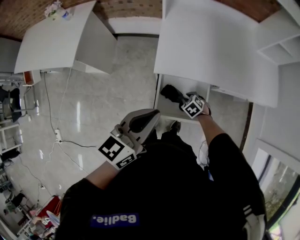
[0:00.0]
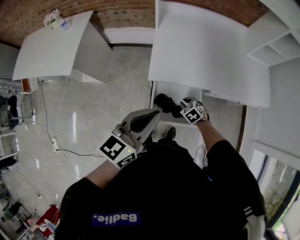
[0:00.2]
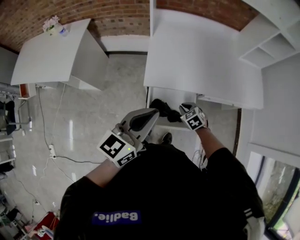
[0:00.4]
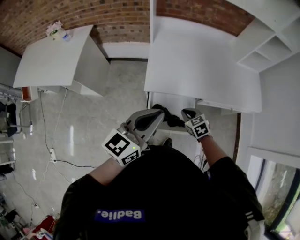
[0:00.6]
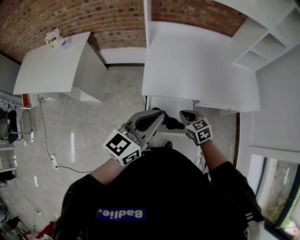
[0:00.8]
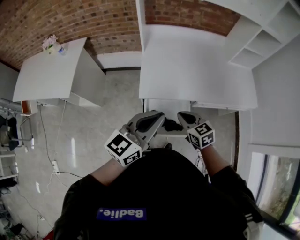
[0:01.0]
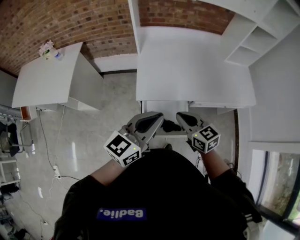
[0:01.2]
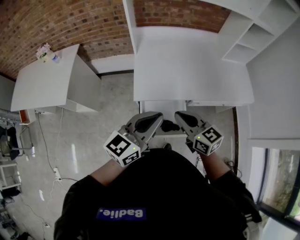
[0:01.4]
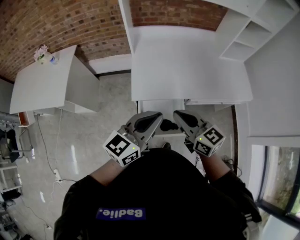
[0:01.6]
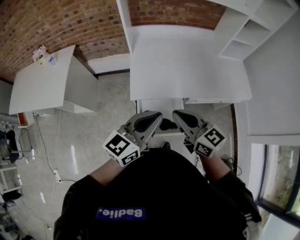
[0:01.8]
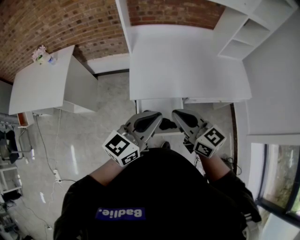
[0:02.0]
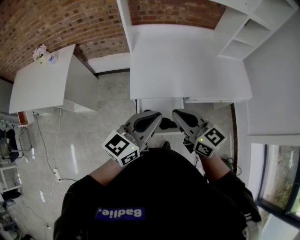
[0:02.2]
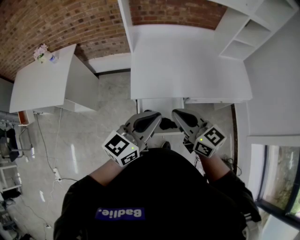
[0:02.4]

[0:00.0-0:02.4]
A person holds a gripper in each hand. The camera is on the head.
0:00.0 to 0:01.2: The right gripper heads upward, covering some 35 cm, and points its fingers some 50 degrees further upward. Meanwhile the left gripper goes some 10 cm to the right and upward.
0:01.2 to 0:02.4: The right gripper goes some 10 cm upward.

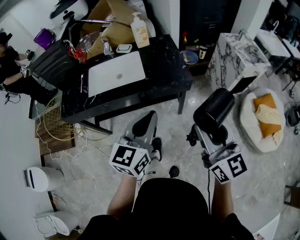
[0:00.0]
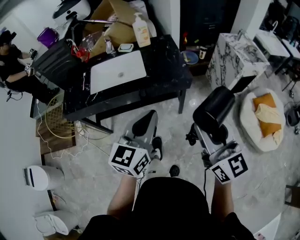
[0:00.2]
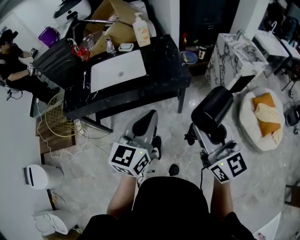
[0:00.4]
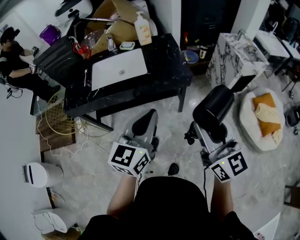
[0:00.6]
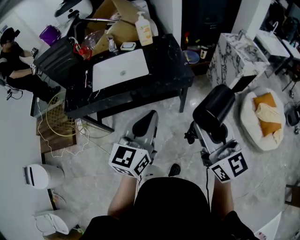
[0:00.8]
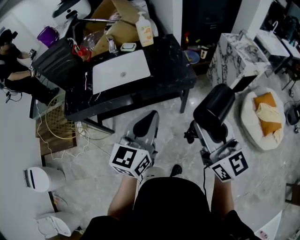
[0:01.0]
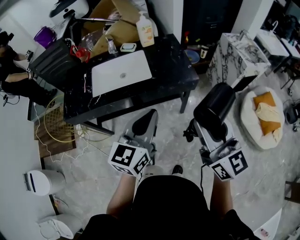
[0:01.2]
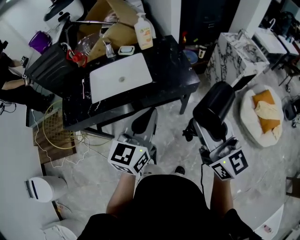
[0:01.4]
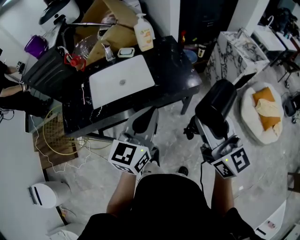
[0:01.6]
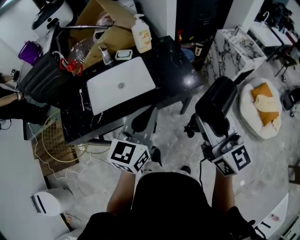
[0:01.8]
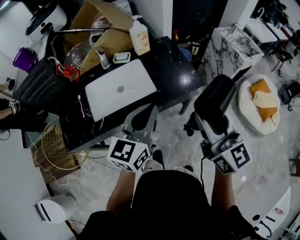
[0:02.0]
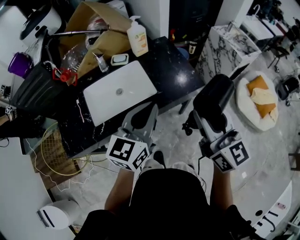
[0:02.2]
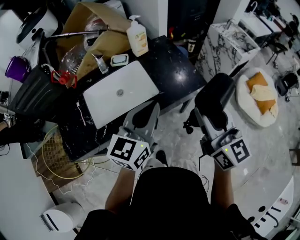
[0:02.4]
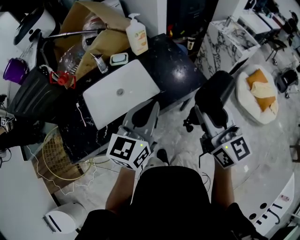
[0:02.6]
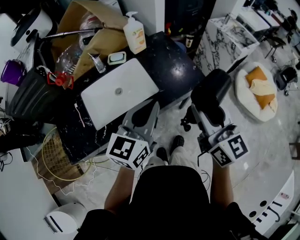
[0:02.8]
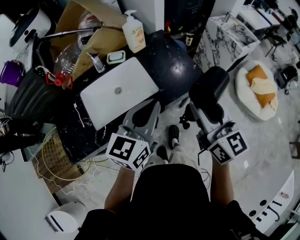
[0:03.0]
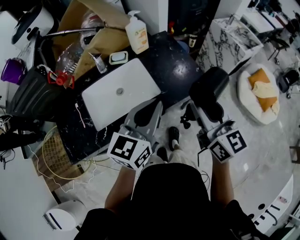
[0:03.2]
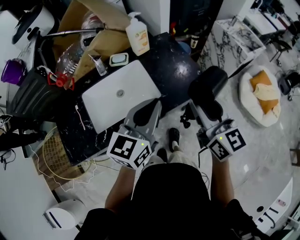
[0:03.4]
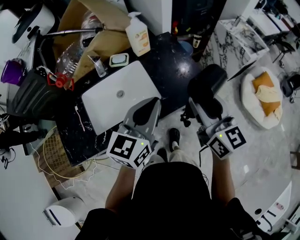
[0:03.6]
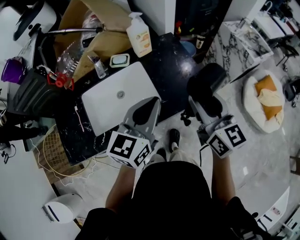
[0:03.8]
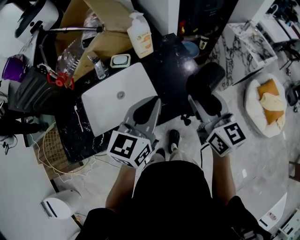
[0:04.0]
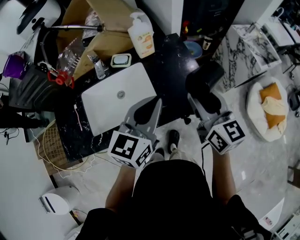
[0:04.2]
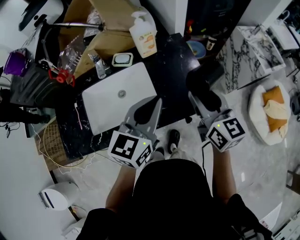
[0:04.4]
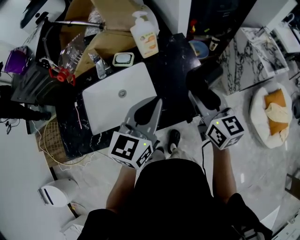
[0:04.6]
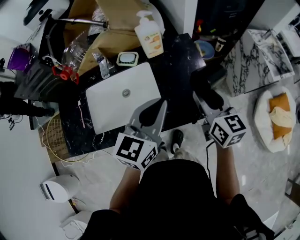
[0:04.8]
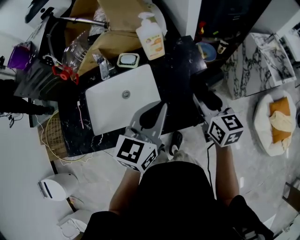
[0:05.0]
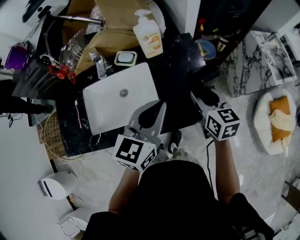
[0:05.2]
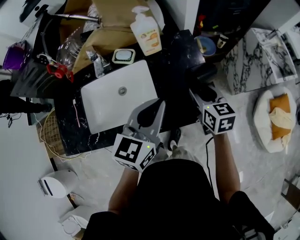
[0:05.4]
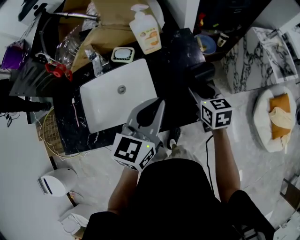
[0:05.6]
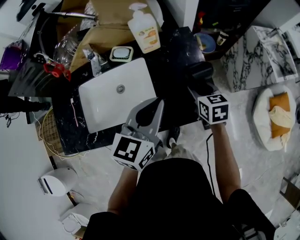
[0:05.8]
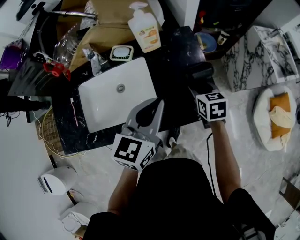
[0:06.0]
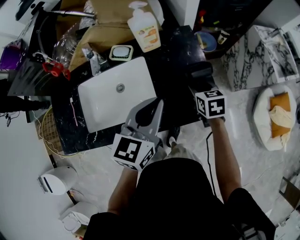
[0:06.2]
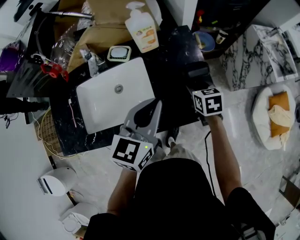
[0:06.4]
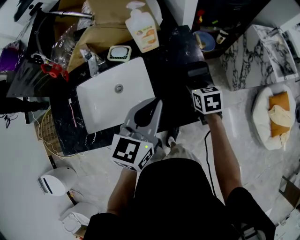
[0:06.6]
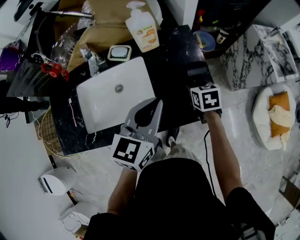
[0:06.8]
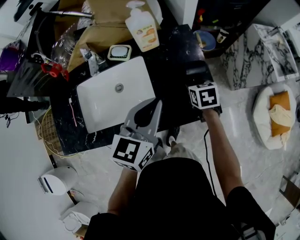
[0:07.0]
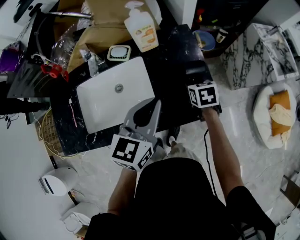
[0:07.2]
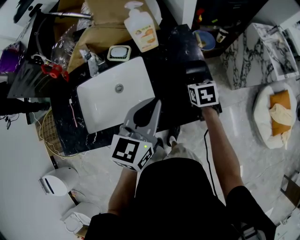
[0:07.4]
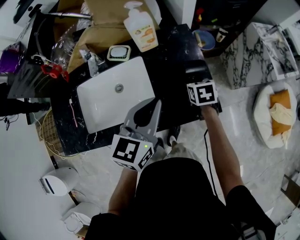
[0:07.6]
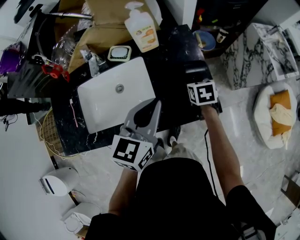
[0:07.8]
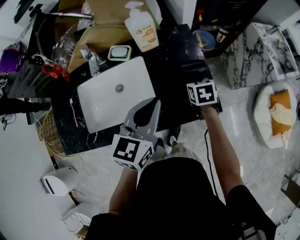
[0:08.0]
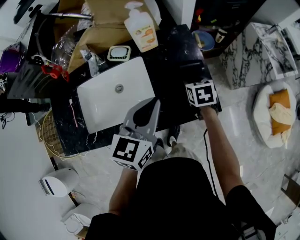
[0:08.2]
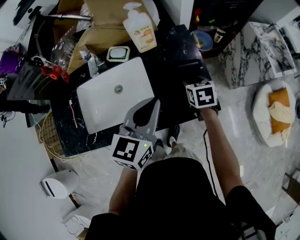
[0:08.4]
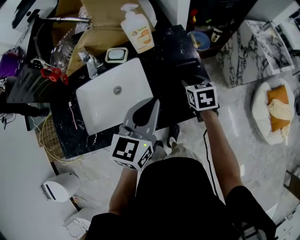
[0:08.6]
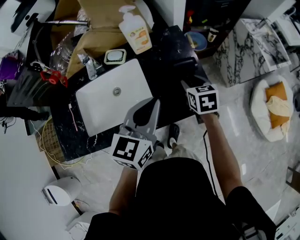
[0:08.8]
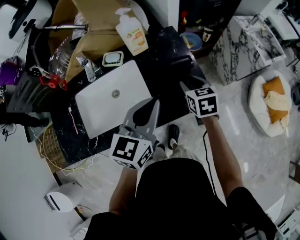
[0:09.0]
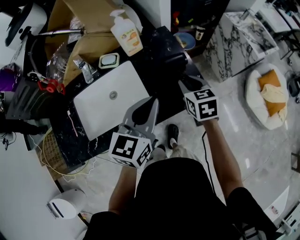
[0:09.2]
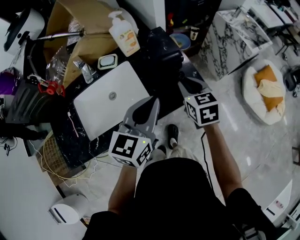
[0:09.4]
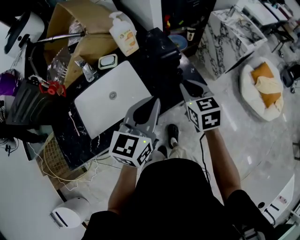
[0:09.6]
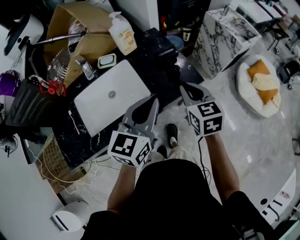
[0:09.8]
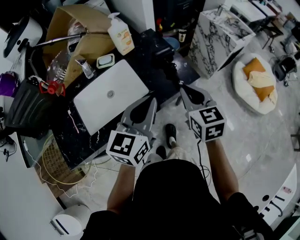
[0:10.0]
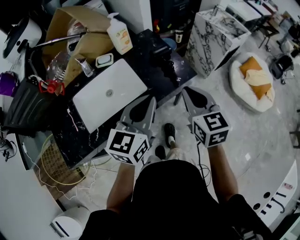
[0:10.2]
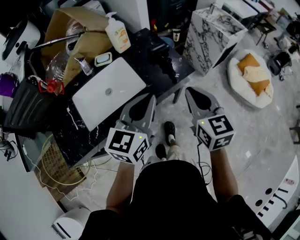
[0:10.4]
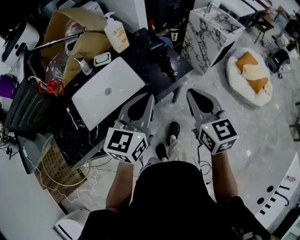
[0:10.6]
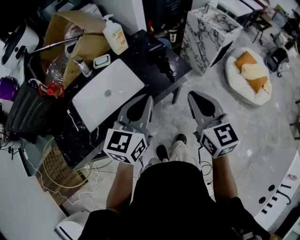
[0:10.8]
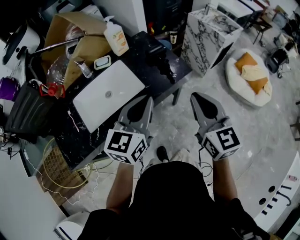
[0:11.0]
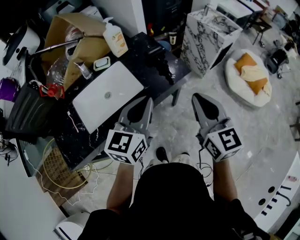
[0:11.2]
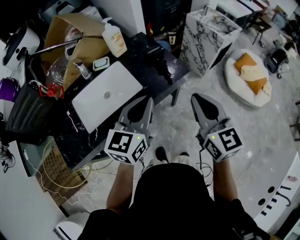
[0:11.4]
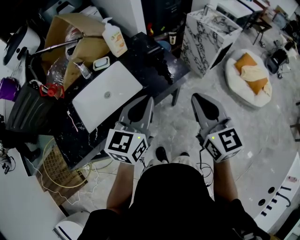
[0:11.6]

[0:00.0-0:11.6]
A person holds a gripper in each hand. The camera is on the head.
0:00.0 to 0:01.4: The grippers both shift to the left by approximately 10 cm.
0:01.4 to 0:02.8: The grippers both shift forward and to the left by roughly 15 cm.
0:02.8 to 0:04.4: The grippers both shift forward by some 20 cm.
0:04.4 to 0:05.8: The right gripper is displaced downward and forward by roughly 20 cm, and angles its fingers downward, by roughly 30 degrees; the left gripper heads forward, covering approximately 5 cm.
0:05.8 to 0:07.2: The right gripper is displaced downward by approximately 5 cm.
0:07.2 to 0:08.8: The right gripper shifts roughly 5 cm upward.
0:08.8 to 0:10.2: The left gripper travels backward by roughly 15 cm. The right gripper heads backward and upward, covering about 30 cm, turns by about 30 degrees, and closes its fingers.
0:10.2 to 0:11.6: The right gripper moves backward and upward, some 10 cm.

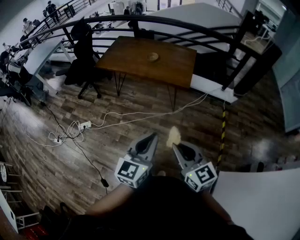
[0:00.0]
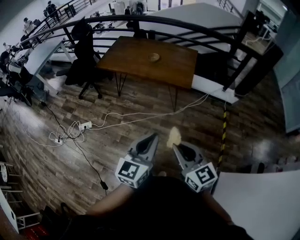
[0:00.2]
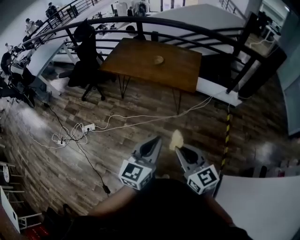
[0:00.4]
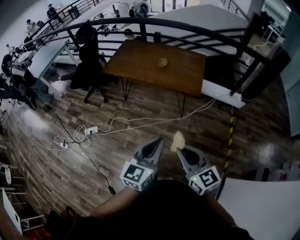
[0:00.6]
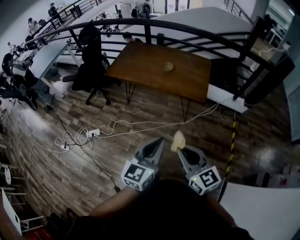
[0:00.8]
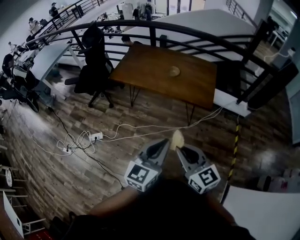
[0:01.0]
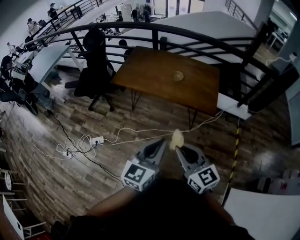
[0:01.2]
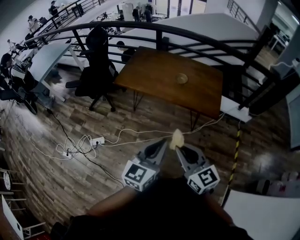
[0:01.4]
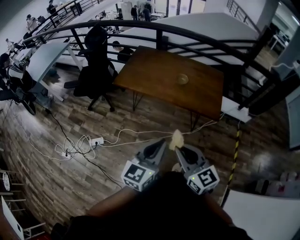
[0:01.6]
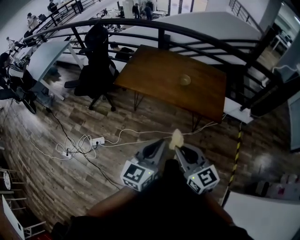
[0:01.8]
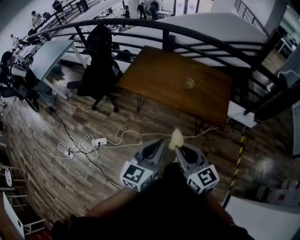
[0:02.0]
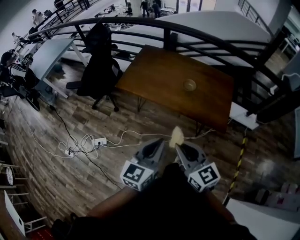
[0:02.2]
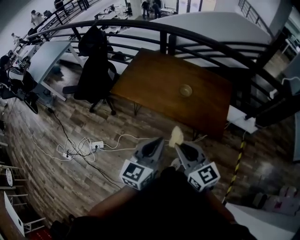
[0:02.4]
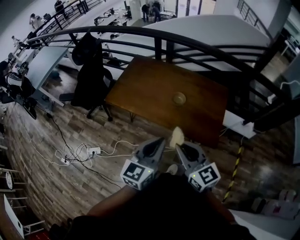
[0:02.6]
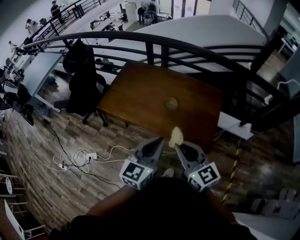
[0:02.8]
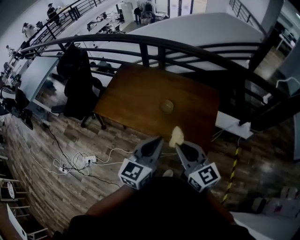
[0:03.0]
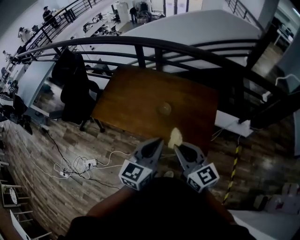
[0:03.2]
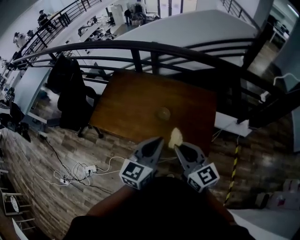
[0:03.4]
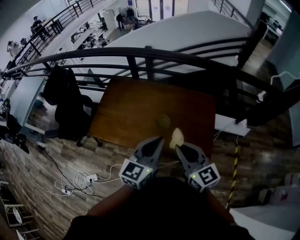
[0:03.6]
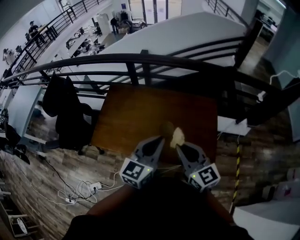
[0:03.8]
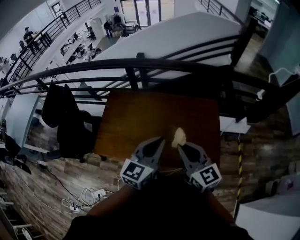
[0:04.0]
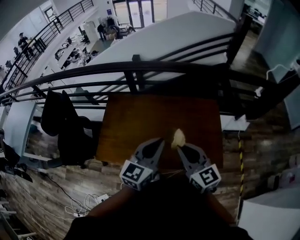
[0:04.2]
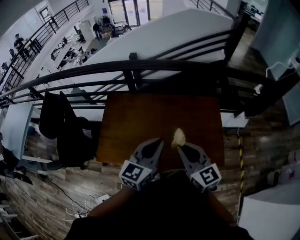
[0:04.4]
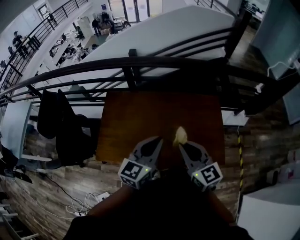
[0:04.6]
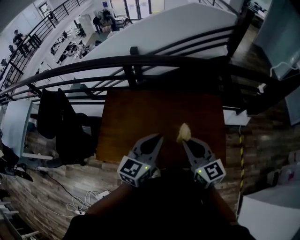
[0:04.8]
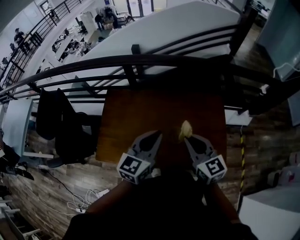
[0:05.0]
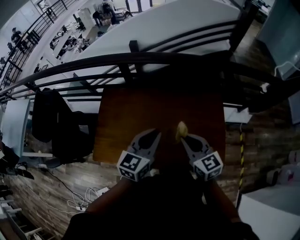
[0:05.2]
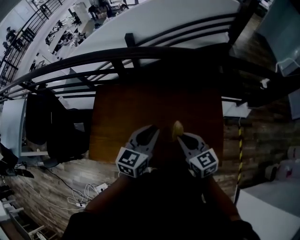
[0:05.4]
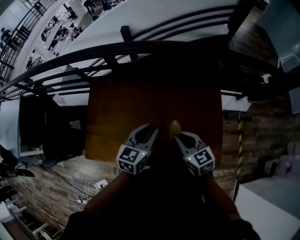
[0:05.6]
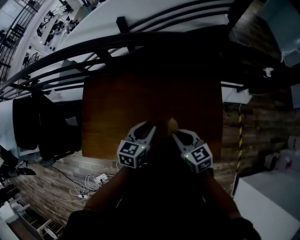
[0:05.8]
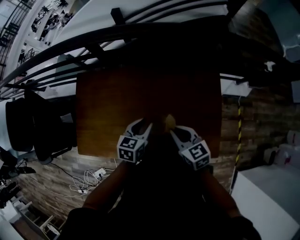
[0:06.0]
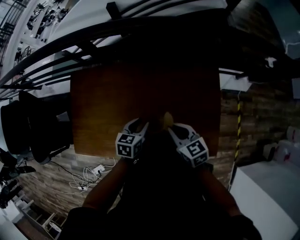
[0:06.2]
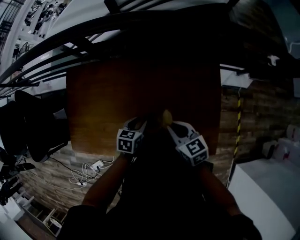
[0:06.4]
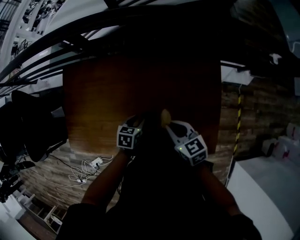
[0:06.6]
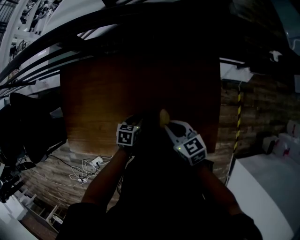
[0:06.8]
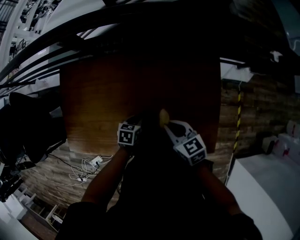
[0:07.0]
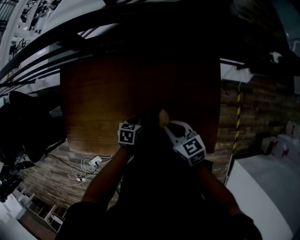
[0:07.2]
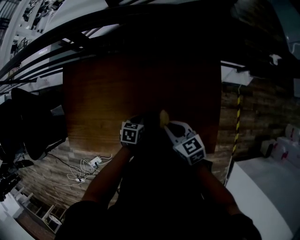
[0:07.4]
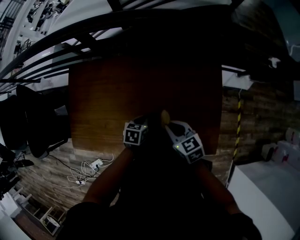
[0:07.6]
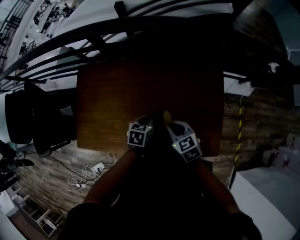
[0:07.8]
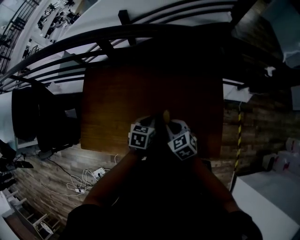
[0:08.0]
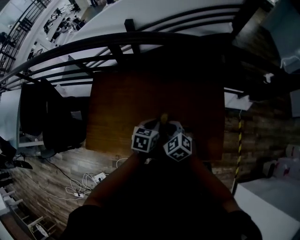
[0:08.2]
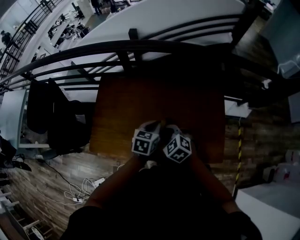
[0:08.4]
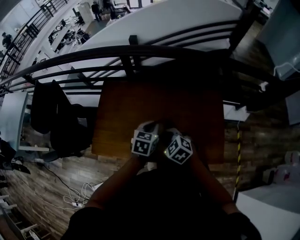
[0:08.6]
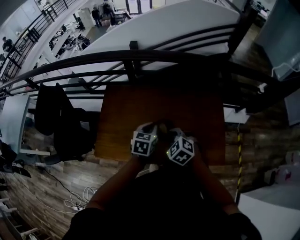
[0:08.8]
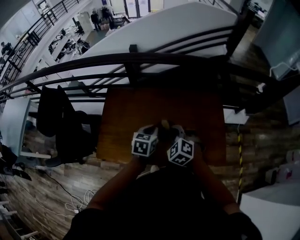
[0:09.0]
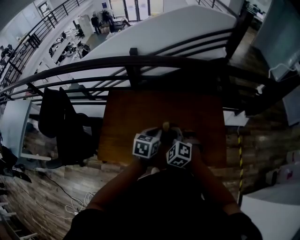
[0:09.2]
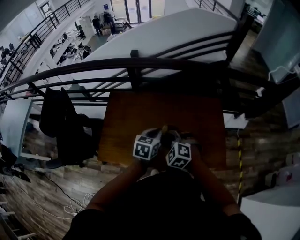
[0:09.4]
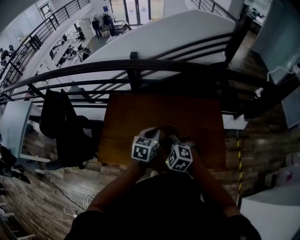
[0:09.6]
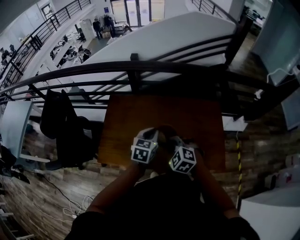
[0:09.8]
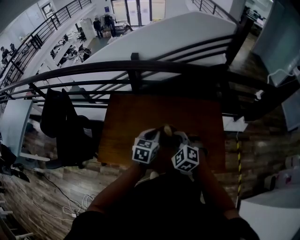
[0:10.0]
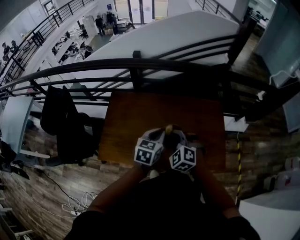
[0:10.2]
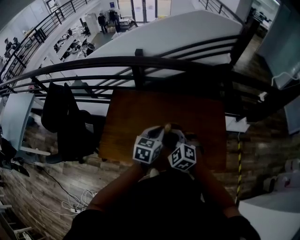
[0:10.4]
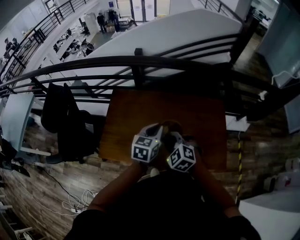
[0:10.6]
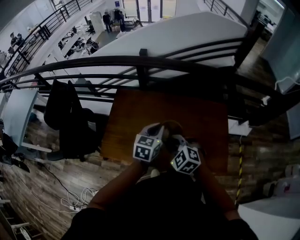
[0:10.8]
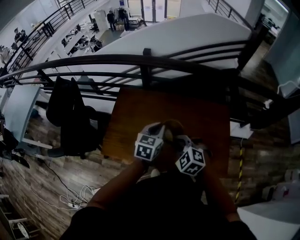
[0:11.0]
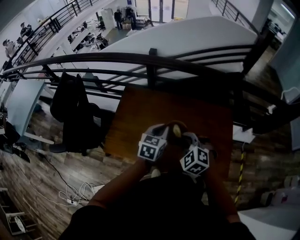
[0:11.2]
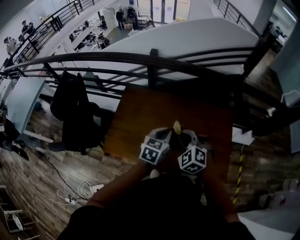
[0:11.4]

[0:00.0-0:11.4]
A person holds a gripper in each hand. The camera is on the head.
0:00.0 to 0:01.4: The grippers both shift forward and to the left by about 35 cm.
0:01.4 to 0:02.8: Both grippers travel together forward and to the right, about 35 cm.
0:02.8 to 0:04.2: Both grippers move forward, roughly 25 cm. The right gripper swivels some 20 degrees.
0:04.2 to 0:05.6: The left gripper travels forward and downward by roughly 25 cm. The right gripper heads downward and forward, covering about 25 cm, and changes its angle by about 20 degrees.
0:05.6 to 0:07.2: The right gripper is displaced downward by roughly 15 cm. Meanwhile the left gripper goes roughly 30 cm downward, and angles its fingers downward, by approximately 40 degrees.
0:07.2 to 0:08.6: The right gripper shifts approximately 25 cm to the left, upward and backward, and swivels roughly 40 degrees, while the left gripper is displaced upward by some 25 cm, and swivels approximately 30 degrees.
0:08.6 to 0:10.0: The two grippers go about 5 cm upward. The right gripper swivels about 20 degrees.
0:10.0 to 0:11.4: The grippers move only a little.
